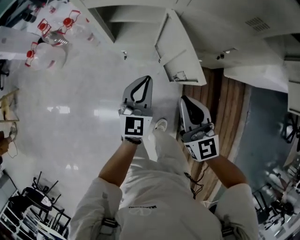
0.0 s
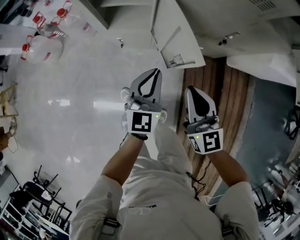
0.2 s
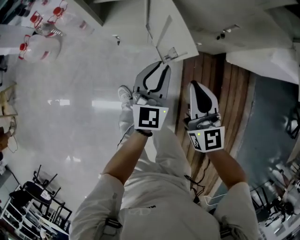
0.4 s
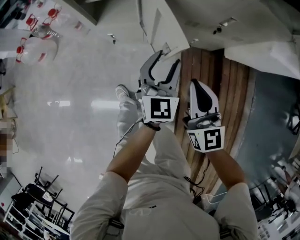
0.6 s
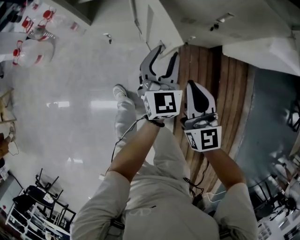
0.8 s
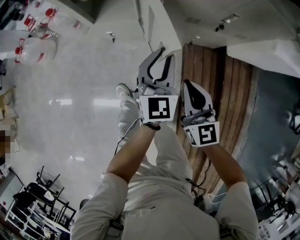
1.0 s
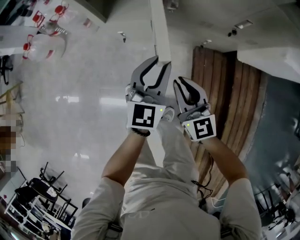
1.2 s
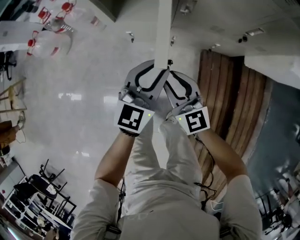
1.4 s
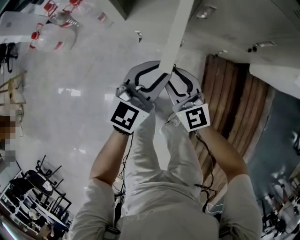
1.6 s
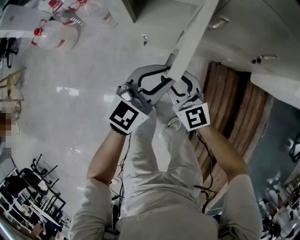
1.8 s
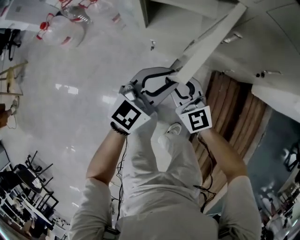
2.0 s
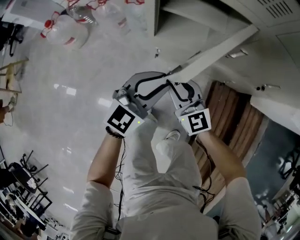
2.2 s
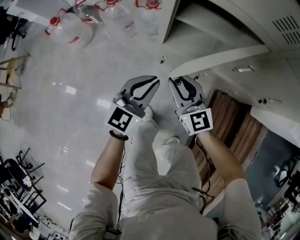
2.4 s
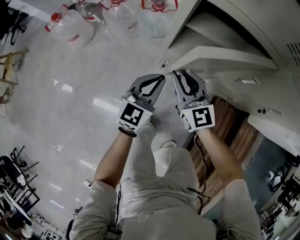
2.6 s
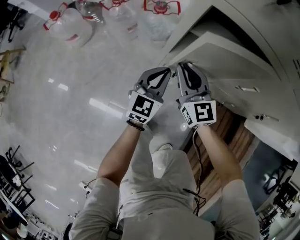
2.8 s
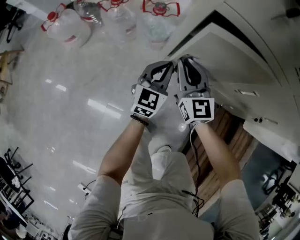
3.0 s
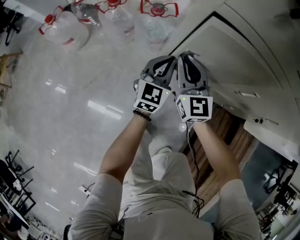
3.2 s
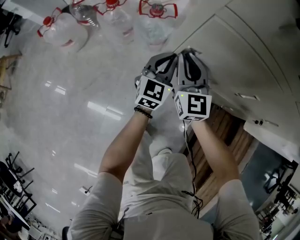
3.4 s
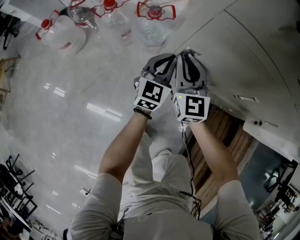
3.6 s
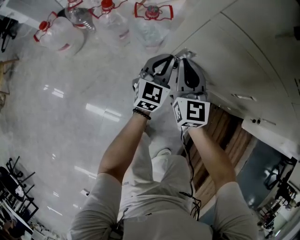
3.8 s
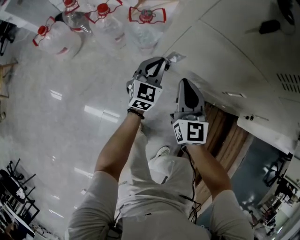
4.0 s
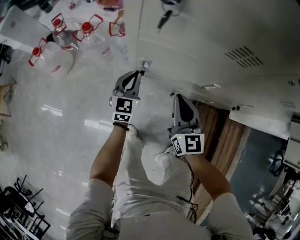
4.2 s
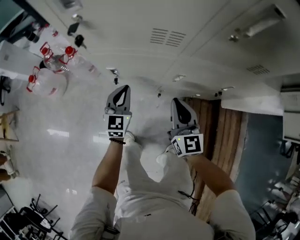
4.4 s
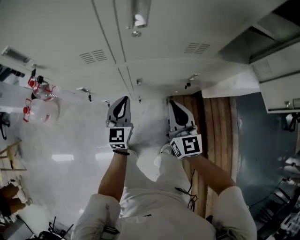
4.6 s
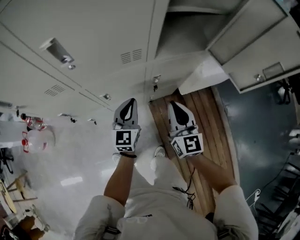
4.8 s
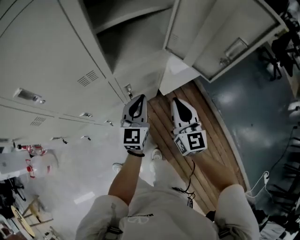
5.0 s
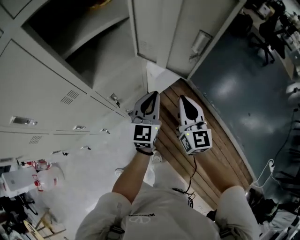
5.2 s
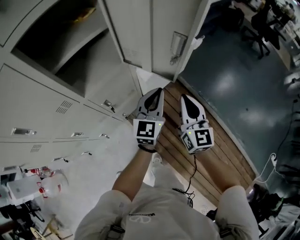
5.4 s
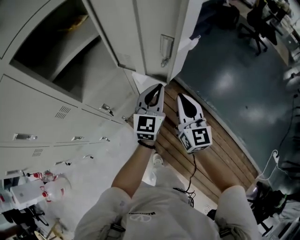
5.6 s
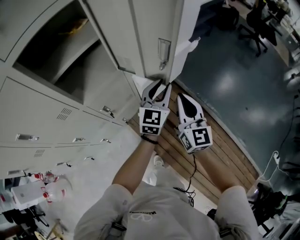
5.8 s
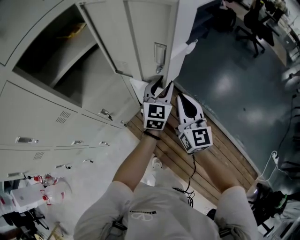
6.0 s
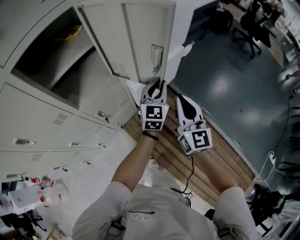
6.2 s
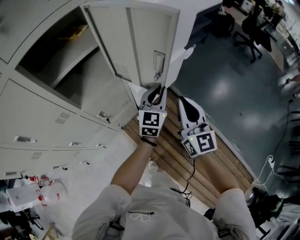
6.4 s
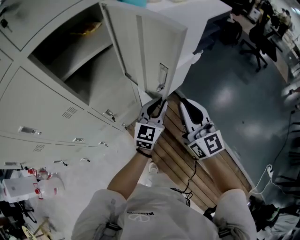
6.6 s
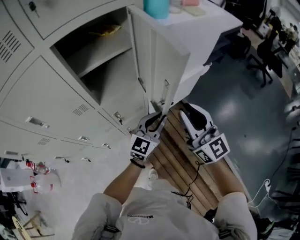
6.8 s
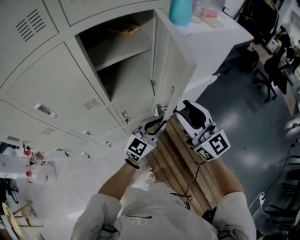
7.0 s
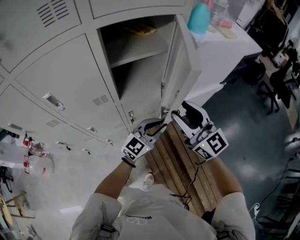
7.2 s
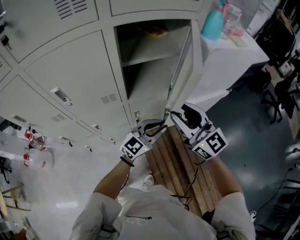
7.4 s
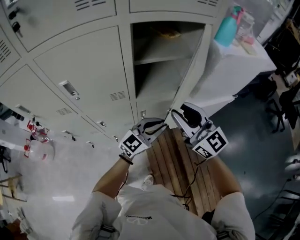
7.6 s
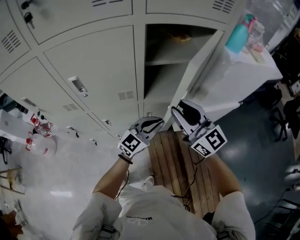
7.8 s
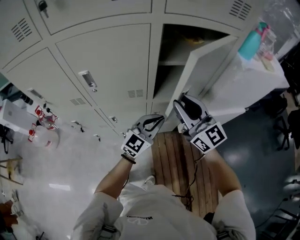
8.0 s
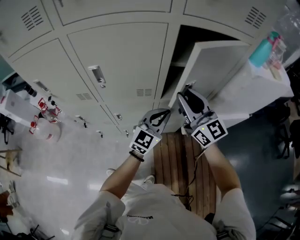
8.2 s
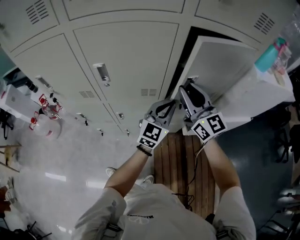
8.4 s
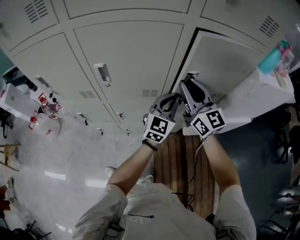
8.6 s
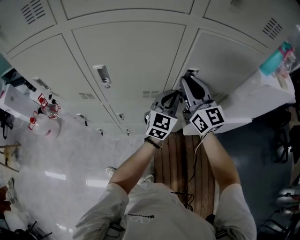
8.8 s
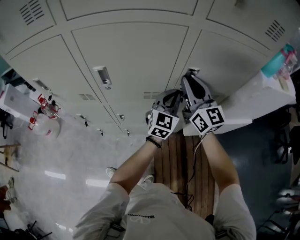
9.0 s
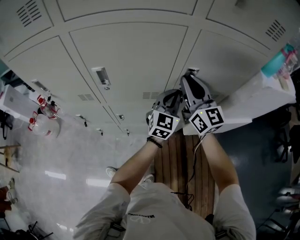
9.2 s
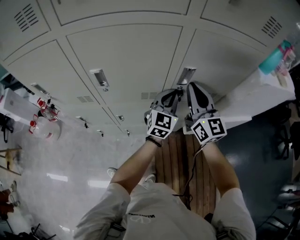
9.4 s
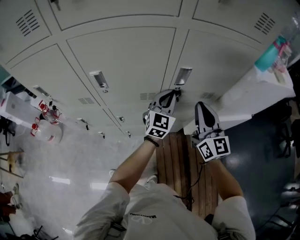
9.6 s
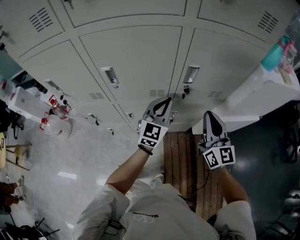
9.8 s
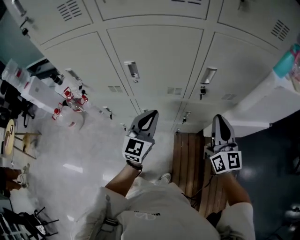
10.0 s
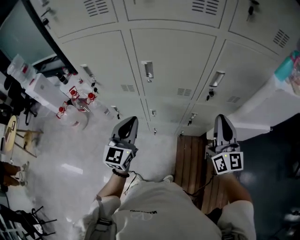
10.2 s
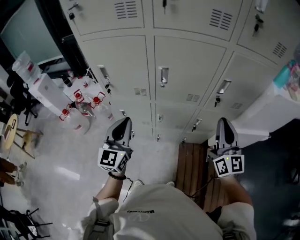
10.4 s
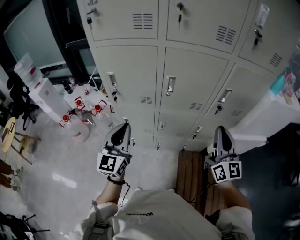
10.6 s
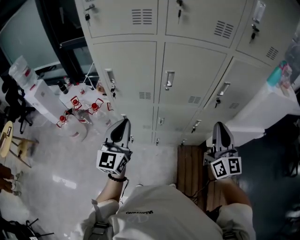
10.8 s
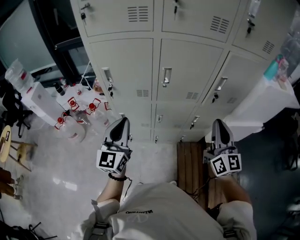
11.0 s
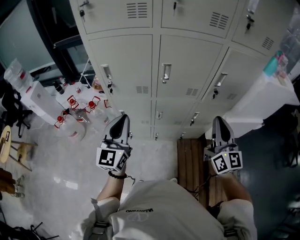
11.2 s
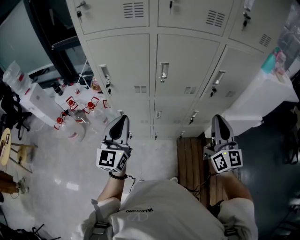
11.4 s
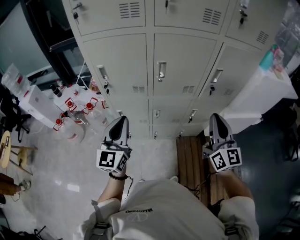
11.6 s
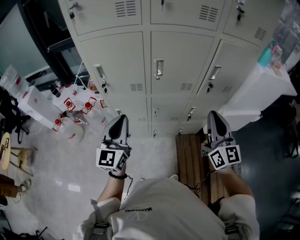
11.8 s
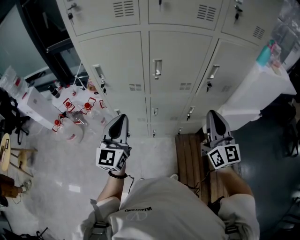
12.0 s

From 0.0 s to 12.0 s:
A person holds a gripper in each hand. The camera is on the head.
From 0.0 s to 1.6 s: The right gripper is displaced downward and to the left by roughly 20 cm, and opens its fingers; the left gripper is displaced downward by some 5 cm, moves roughly 15 cm to the right and comes back, swivels roughly 20 degrees, and opens.
From 1.6 s to 3.0 s: The right gripper heads forward and to the left, covering roughly 30 cm, and closes up. The left gripper moves forward, to the left and downward, about 30 cm, rotates some 30 degrees, and closes up.
From 3.0 s to 4.4 s: The right gripper shifts about 30 cm to the right, upward and backward, and swivels some 20 degrees. The left gripper travels upward and to the right by approximately 15 cm.
From 4.4 s to 6.0 s: The pair of grippers is taken roughly 70 cm. The left gripper swivels approximately 60 degrees, and opens. Meanwhile the right gripper changes its angle by some 50 degrees.
From 6.0 s to 7.6 s: The right gripper shifts roughly 30 cm to the left and upward, swivels approximately 60 degrees, and opens its fingers, while the left gripper goes some 25 cm to the left and backward.
From 7.6 s to 9.0 s: The grippers both shift forward and to the left by some 20 cm. The left gripper rotates approximately 40 degrees.
From 9.0 s to 10.4 s: The left gripper shifts roughly 40 cm to the left and backward, and changes its angle by roughly 20 degrees, while the right gripper is displaced backward by about 20 cm.
From 10.4 s to 12.0 s: The left gripper changes place by approximately 5 cm. Meanwhile the right gripper shifts roughly 10 cm backward and to the left.

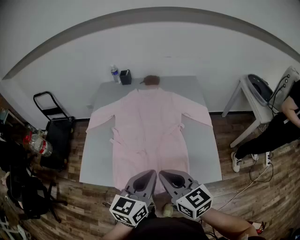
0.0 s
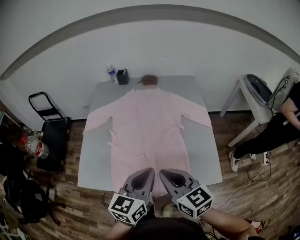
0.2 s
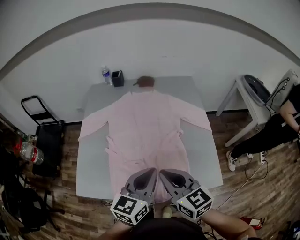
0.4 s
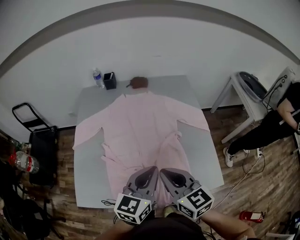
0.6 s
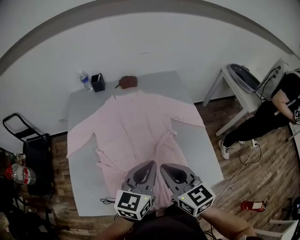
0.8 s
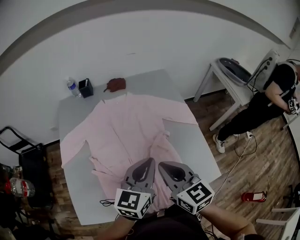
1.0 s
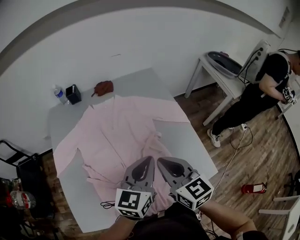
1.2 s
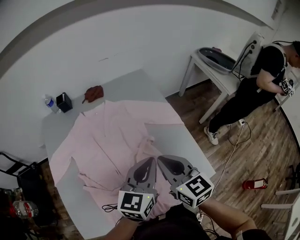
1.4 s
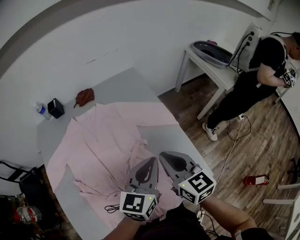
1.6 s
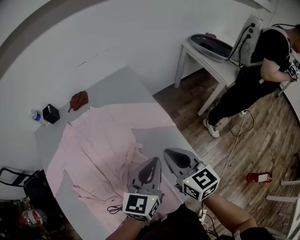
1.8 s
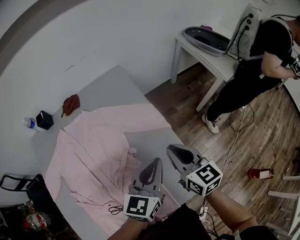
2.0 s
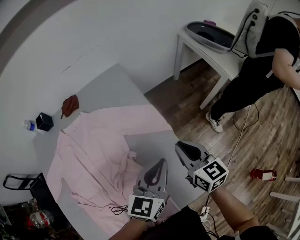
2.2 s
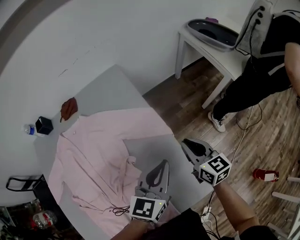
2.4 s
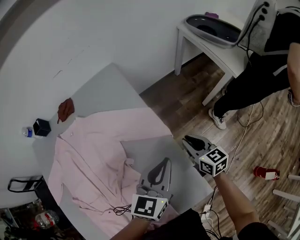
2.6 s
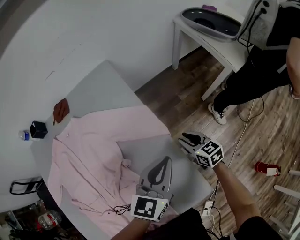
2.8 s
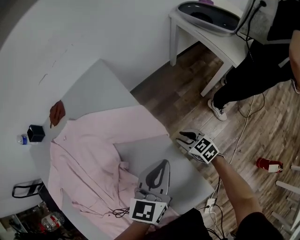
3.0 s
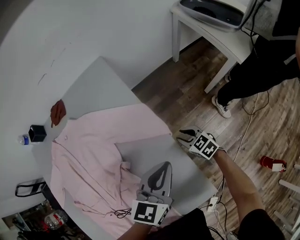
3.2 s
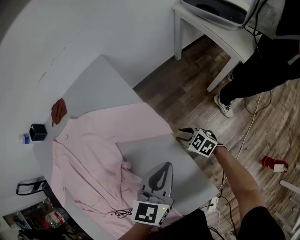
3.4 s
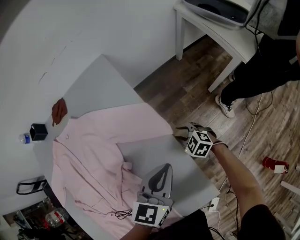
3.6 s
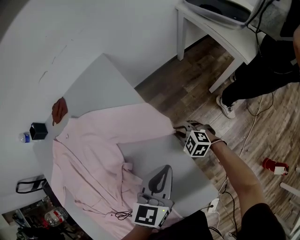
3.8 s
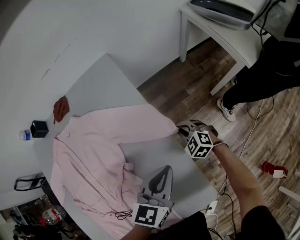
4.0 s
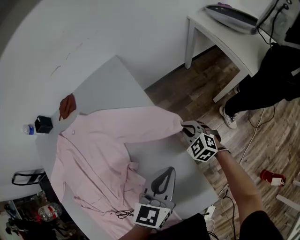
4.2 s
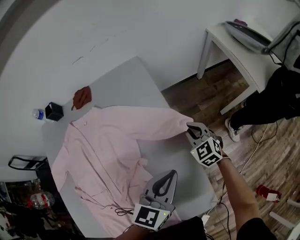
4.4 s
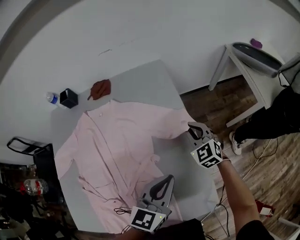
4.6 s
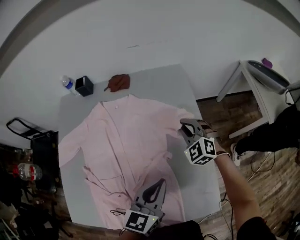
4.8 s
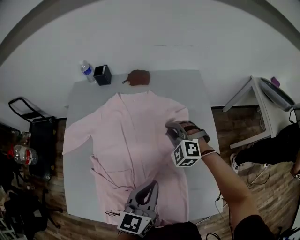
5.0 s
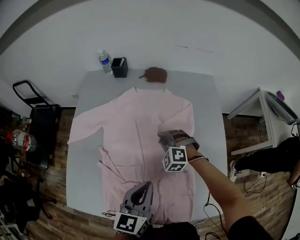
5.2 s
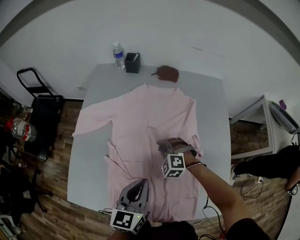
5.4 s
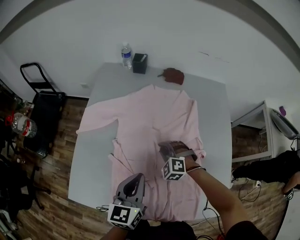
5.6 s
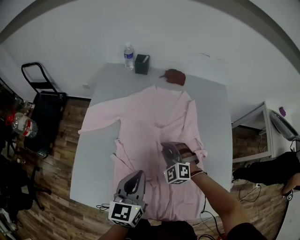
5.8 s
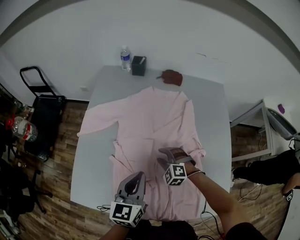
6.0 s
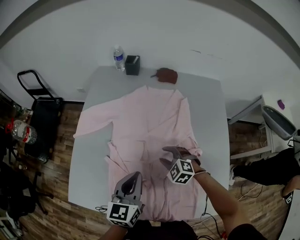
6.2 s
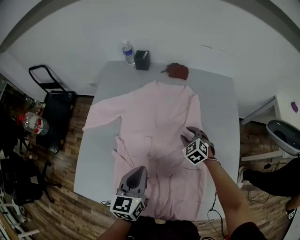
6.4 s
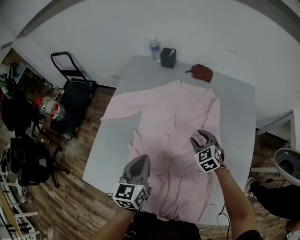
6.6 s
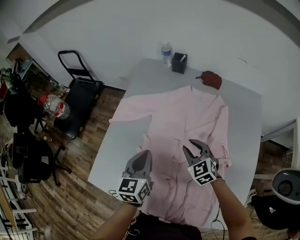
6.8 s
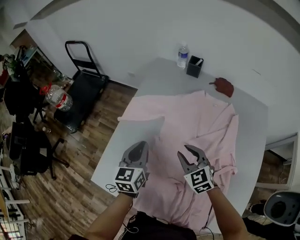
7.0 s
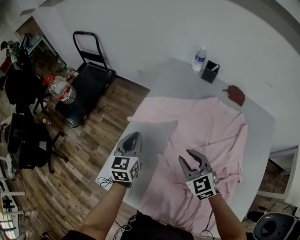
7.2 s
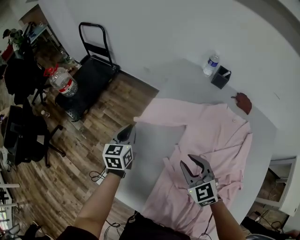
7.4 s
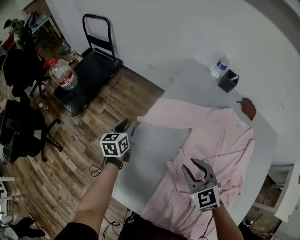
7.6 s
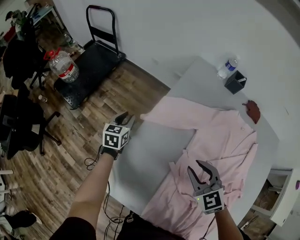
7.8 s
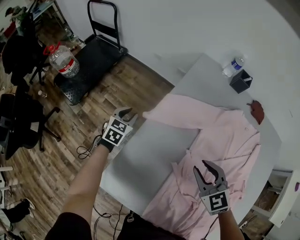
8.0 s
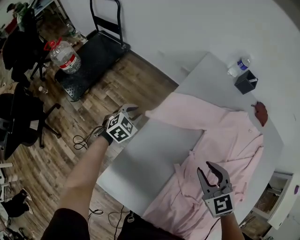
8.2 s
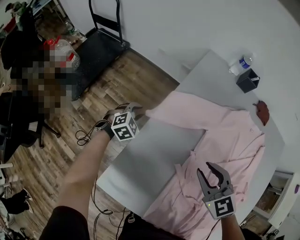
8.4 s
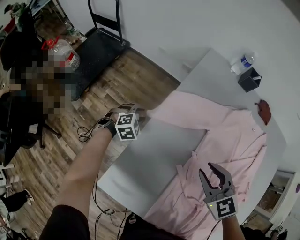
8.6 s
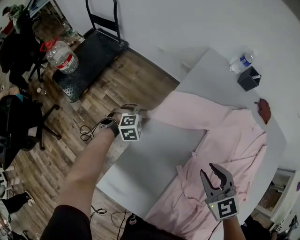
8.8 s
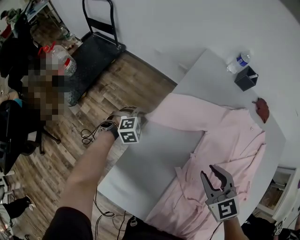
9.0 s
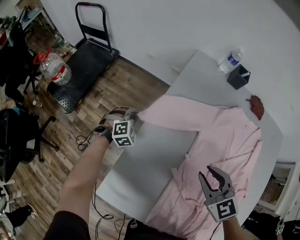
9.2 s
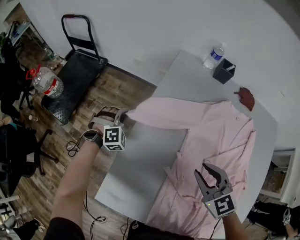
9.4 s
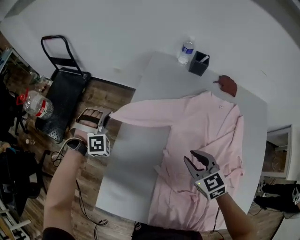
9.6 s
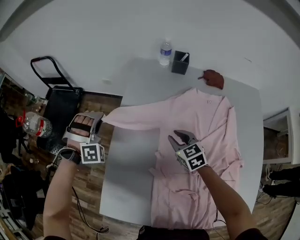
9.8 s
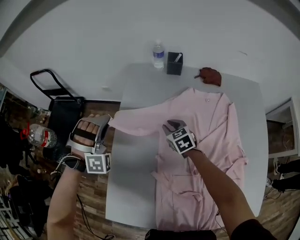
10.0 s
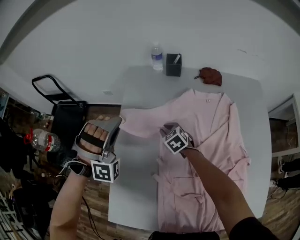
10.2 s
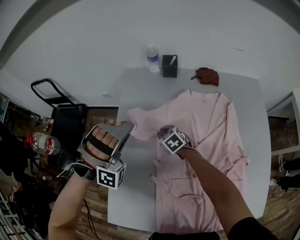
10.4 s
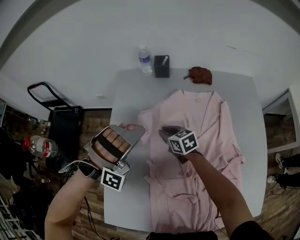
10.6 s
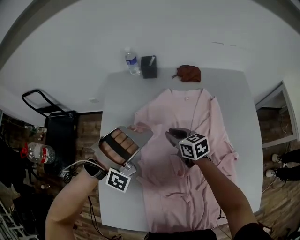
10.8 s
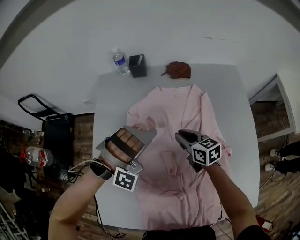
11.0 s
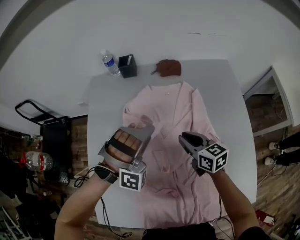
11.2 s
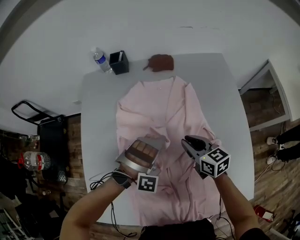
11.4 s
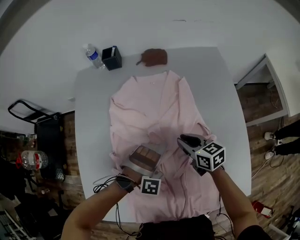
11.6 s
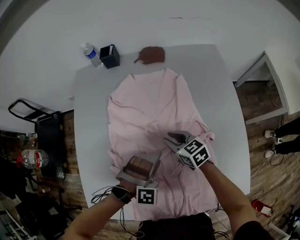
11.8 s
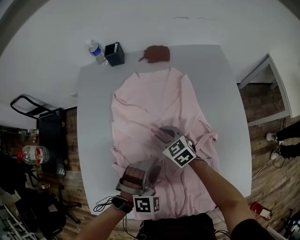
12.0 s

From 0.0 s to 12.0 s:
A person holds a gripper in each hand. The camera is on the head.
From 0.0 s to 1.6 s: The left gripper moves some 25 cm, and rotates about 20 degrees, while the right gripper moves some 25 cm, and swivels some 30 degrees.
From 1.6 s to 3.0 s: The left gripper heads to the right, forward and downward, covering roughly 20 cm, while the right gripper goes about 40 cm downward, to the right and forward, rotates roughly 30 degrees, and opens.
From 3.0 s to 4.4 s: The right gripper goes roughly 15 cm upward, forward and to the left, and changes its angle by roughly 30 degrees.
From 4.4 s to 6.0 s: Both grippers are carried roughly 50 cm. The left gripper swivels about 40 degrees. Meanwhile the right gripper rolls counterclockwise, seen from behind, by some 50 degrees, and opens up.
From 6.0 s to 7.6 s: The left gripper shifts by some 50 cm, and swivels about 30 degrees. Meanwhile the right gripper shifts by roughly 25 cm, and turns by roughly 30 degrees.
From 7.6 s to 9.0 s: The left gripper heads downward, covering some 10 cm, and rotates around the line of its fingers by about 80 degrees, clockwise from behind.
From 9.0 s to 10.4 s: The right gripper moves downward and forward, some 25 cm, and swivels some 20 degrees. Meanwhile the left gripper moves upward and to the right, approximately 40 cm, and tips its fingers upward by approximately 40 degrees.
From 10.4 s to 12.0 s: The left gripper moves to the right, backward and downward, some 35 cm, changes its angle by roughly 50 degrees, and opens. The right gripper moves to the right and backward, about 25 cm.
